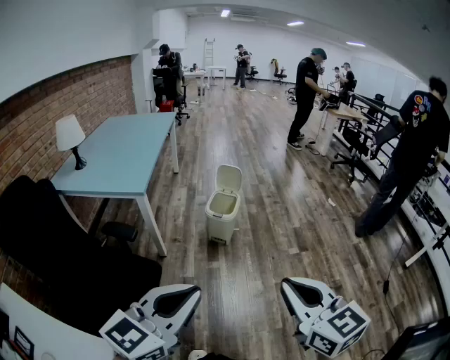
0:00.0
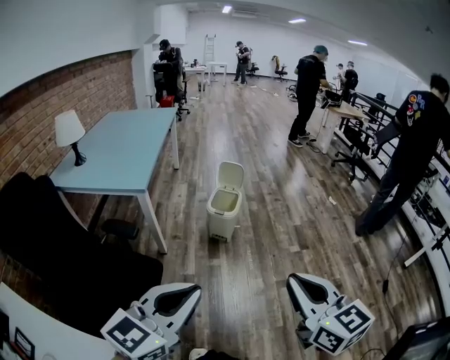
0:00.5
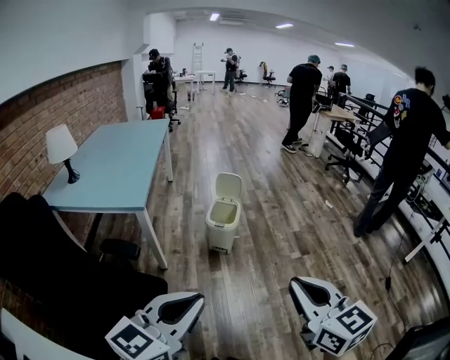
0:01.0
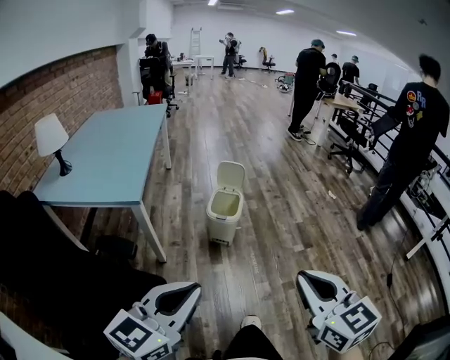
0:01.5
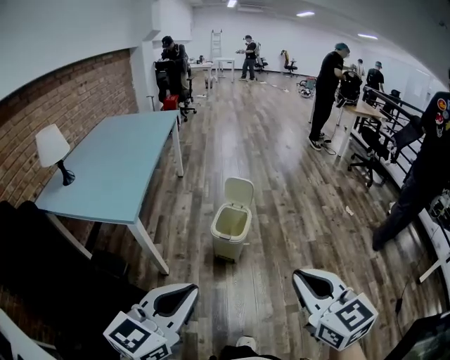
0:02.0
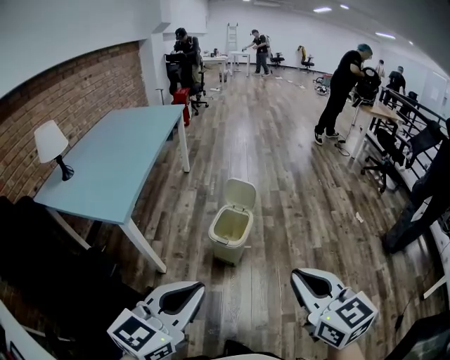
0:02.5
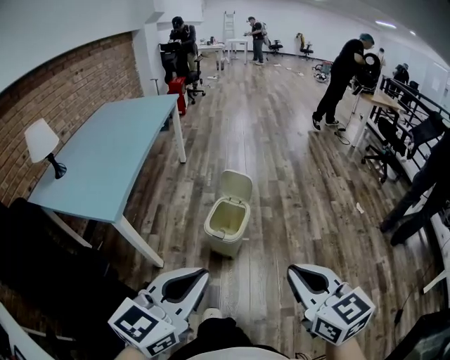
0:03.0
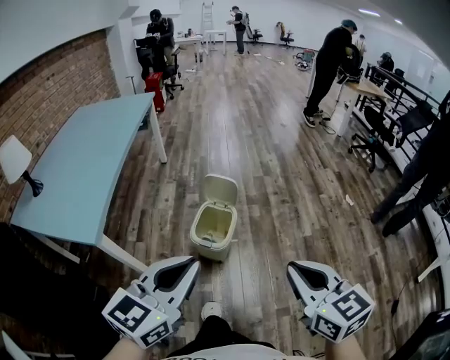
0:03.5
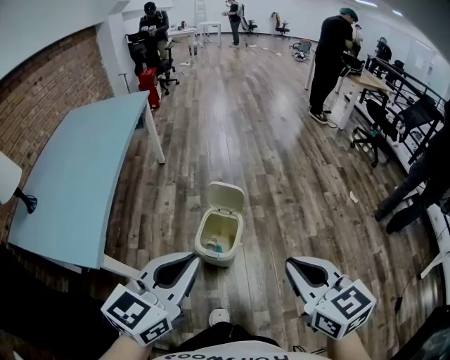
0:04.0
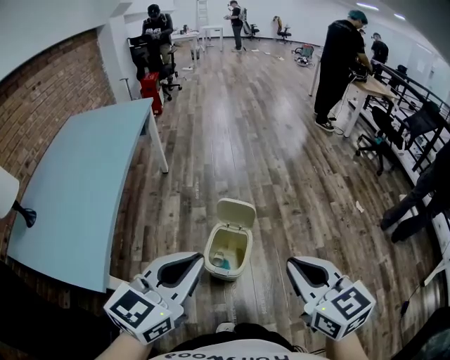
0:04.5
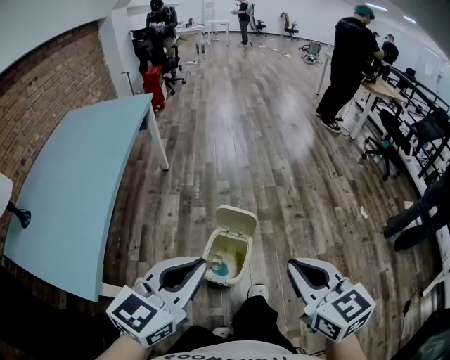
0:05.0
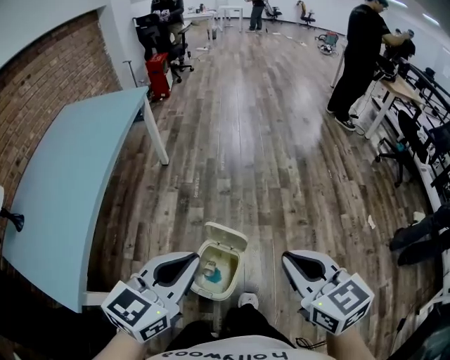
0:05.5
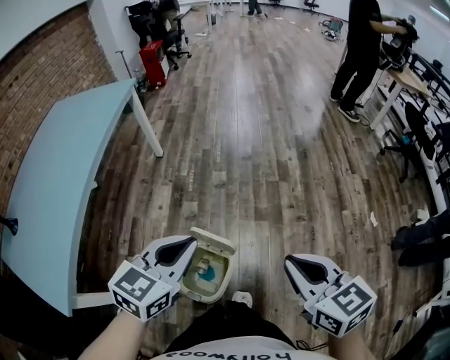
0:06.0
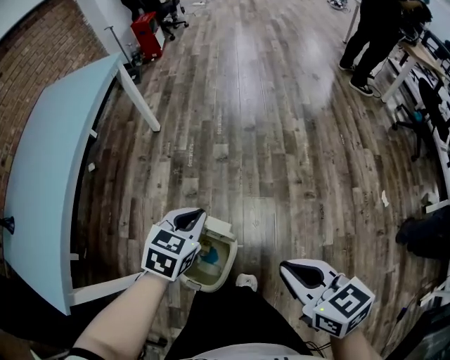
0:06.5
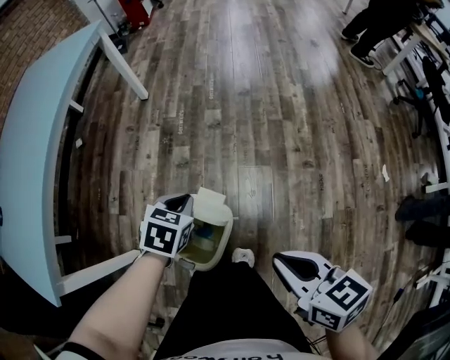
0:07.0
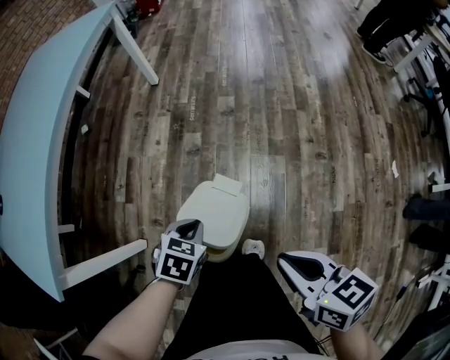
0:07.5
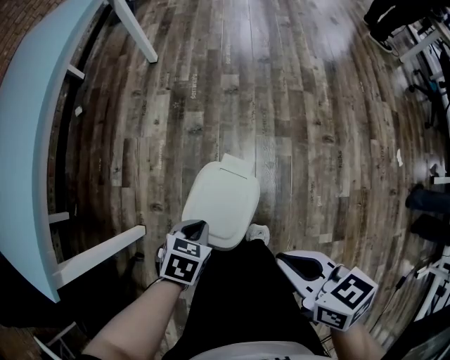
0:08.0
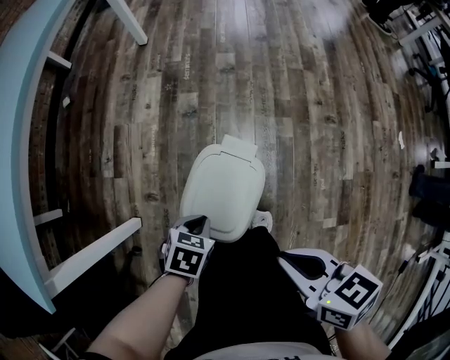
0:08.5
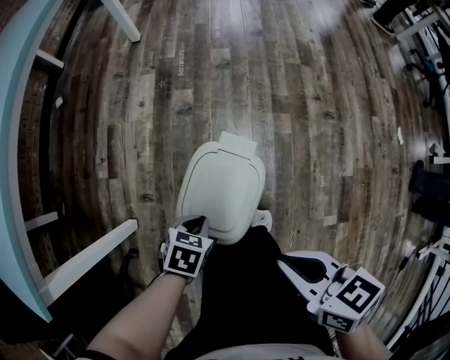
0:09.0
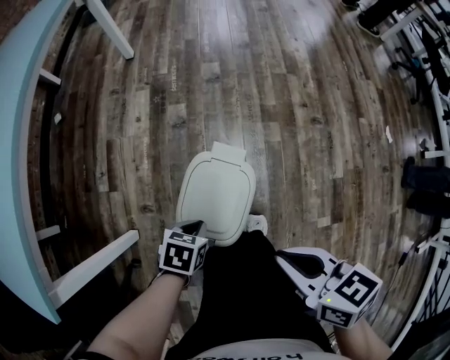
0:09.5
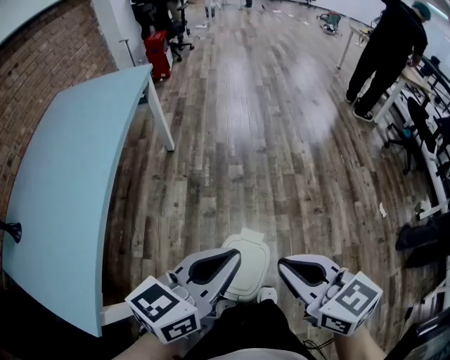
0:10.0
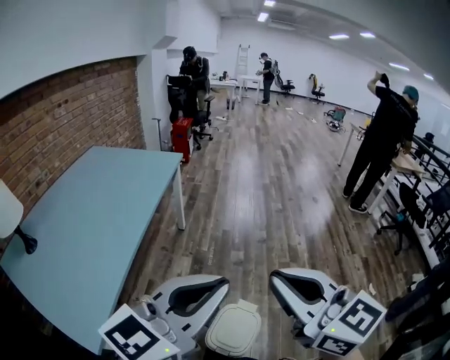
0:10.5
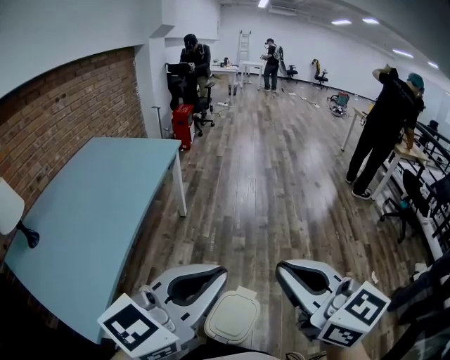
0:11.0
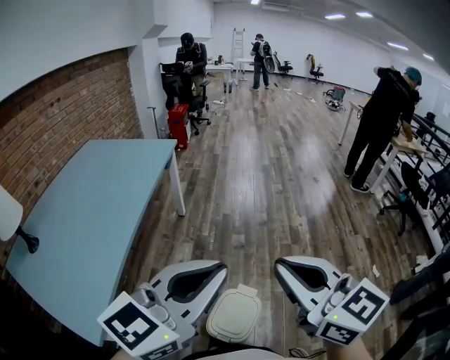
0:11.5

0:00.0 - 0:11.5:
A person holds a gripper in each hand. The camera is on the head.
0:00.0 - 0:02.0: Both grippers move forward, roughly 25 cm.
0:02.0 - 0:04.0: Both grippers move forward, approximately 30 cm.
0:04.0 - 0:06.0: The two grippers go roughly 35 cm forward.
0:06.0 - 0:07.5: The left gripper goes some 30 cm downward, and angles its fingers downward, by roughly 40 degrees, while the right gripper moves downward, some 15 cm, and swivels some 20 degrees.
0:07.5 - 0:09.5: The right gripper is displaced to the left and downward by approximately 10 cm. Meanwhile the left gripper moves downward and backward, roughly 15 cm.
0:09.5 - 0:11.5: The right gripper moves upward, approximately 40 cm, and tilts its fingers approximately 30 degrees upward. The left gripper shifts about 70 cm upward, and tips its fingers upward by approximately 70 degrees.

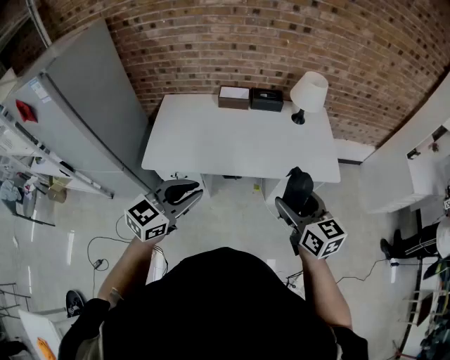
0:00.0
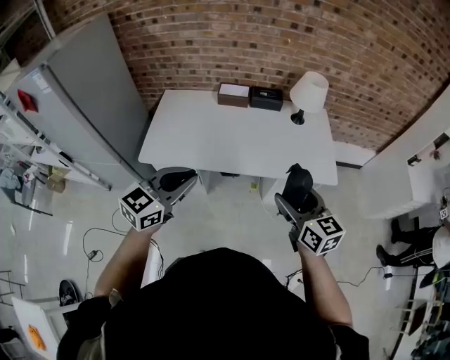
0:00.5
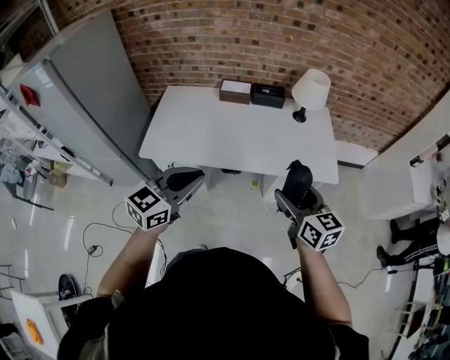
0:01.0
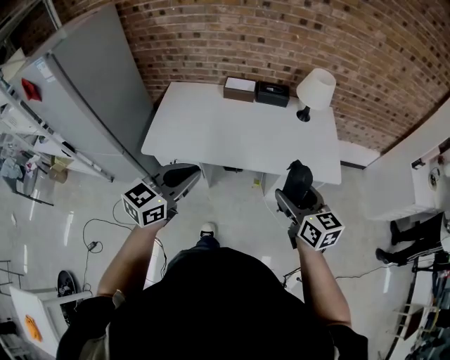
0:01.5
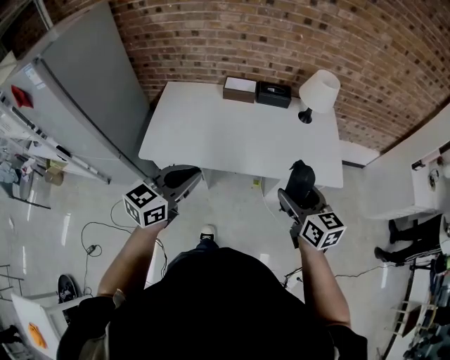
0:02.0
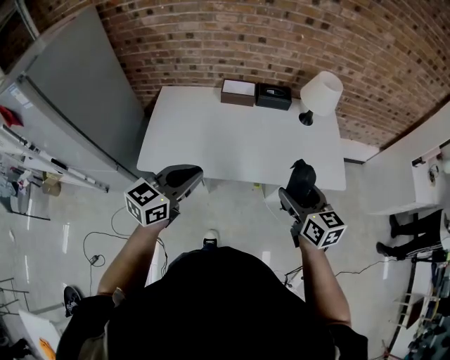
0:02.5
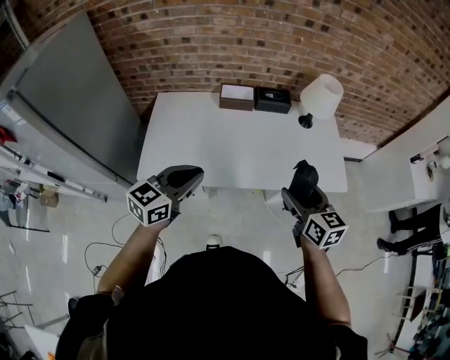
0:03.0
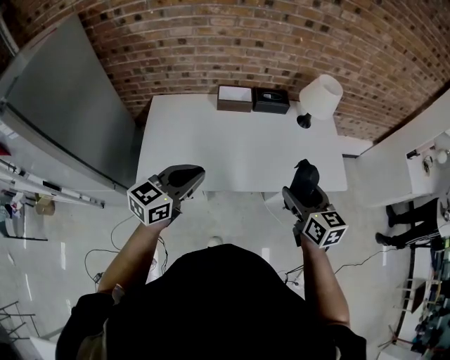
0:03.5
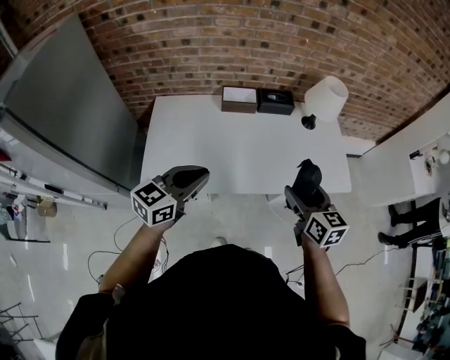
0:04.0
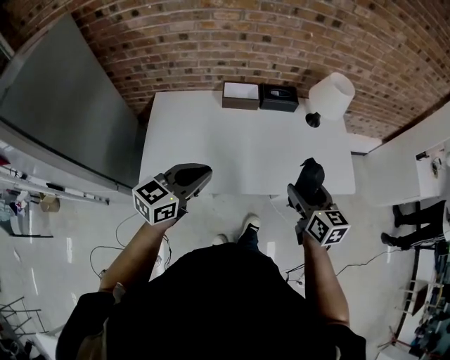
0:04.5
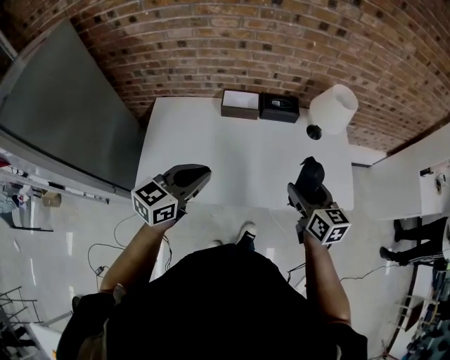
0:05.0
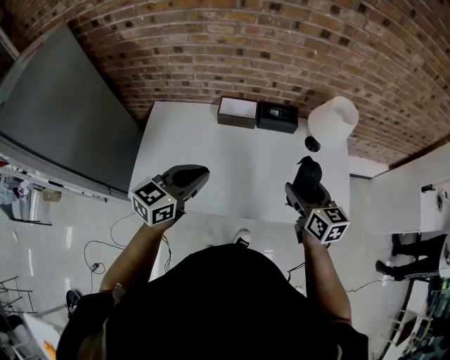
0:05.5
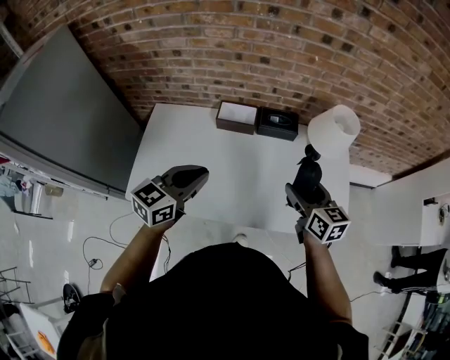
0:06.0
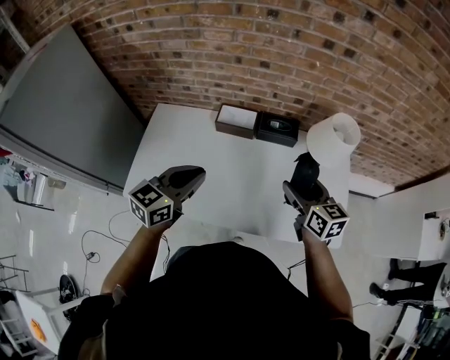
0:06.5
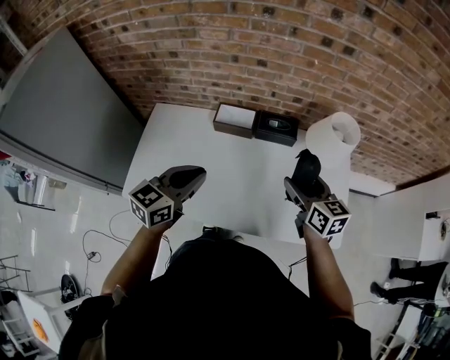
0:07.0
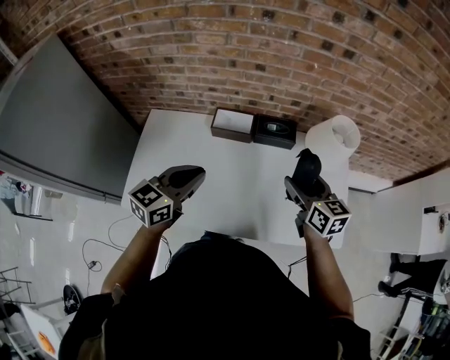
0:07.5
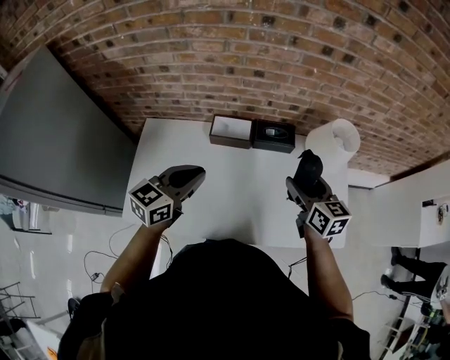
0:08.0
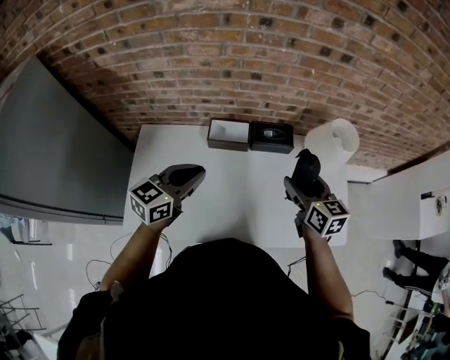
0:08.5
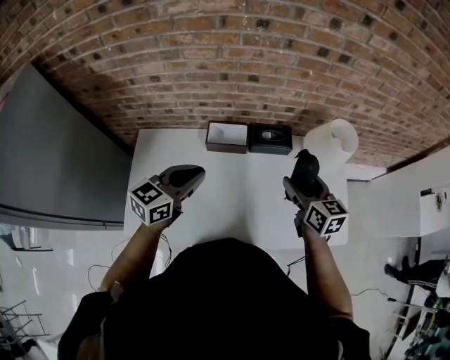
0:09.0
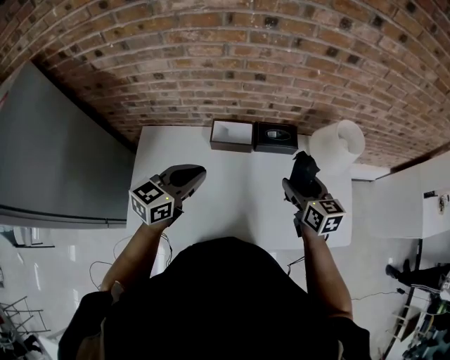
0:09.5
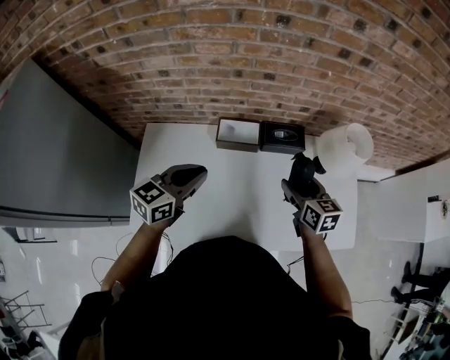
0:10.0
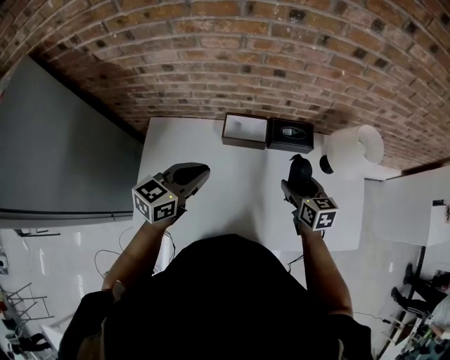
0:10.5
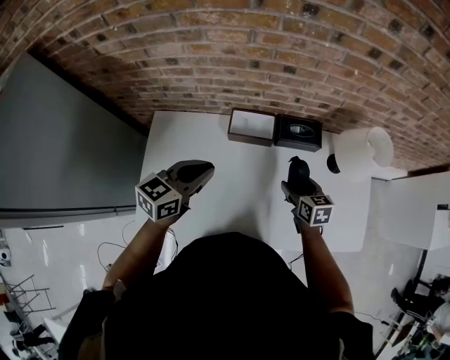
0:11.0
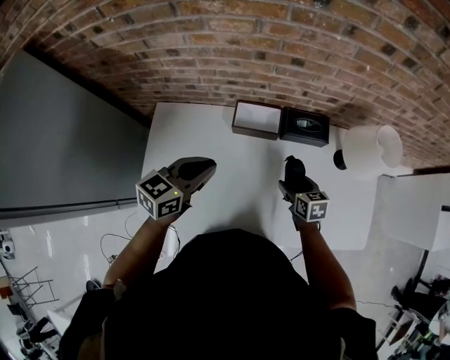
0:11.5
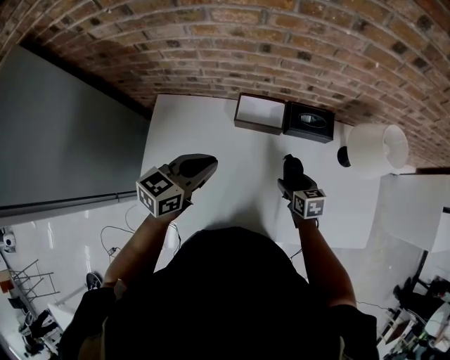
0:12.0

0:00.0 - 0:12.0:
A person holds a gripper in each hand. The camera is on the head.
0:00.0 - 0:02.0: The two grippers go approximately 5 cm forward.
0:02.0 - 0:04.0: The two grippers go about 15 cm forward and to the left.
0:04.0 - 0:06.0: The right gripper heads forward, covering roughly 25 cm. The left gripper shifts approximately 20 cm forward and to the right.
0:06.0 - 0:08.0: Both grippers travel together forward, roughly 10 cm.
0:08.0 - 0:10.0: The left gripper is displaced forward and to the left by roughly 5 cm. Meanwhile the right gripper travels downward and to the left by roughly 10 cm.
0:10.0 - 0:12.0: The left gripper moves downward, approximately 5 cm. The right gripper goes some 20 cm downward, and turns by approximately 20 degrees.

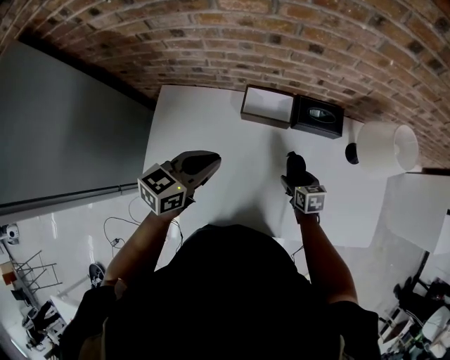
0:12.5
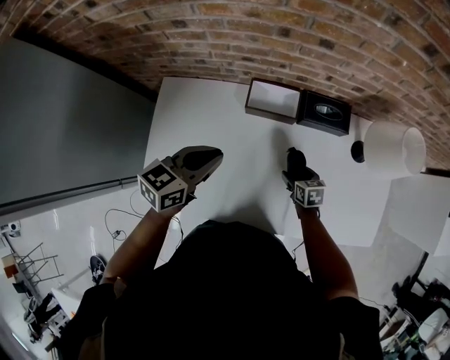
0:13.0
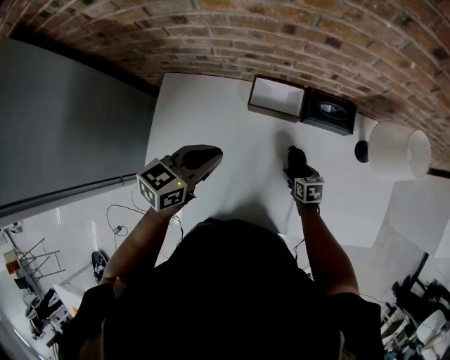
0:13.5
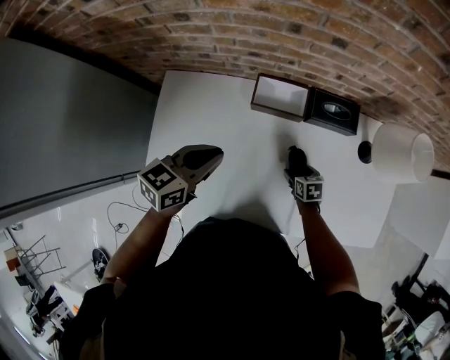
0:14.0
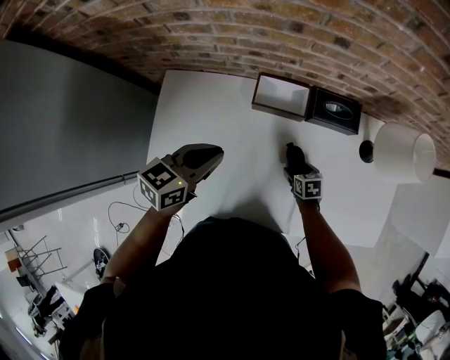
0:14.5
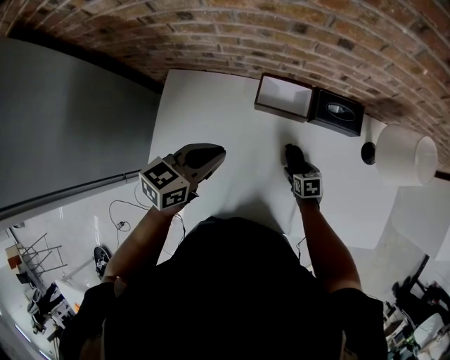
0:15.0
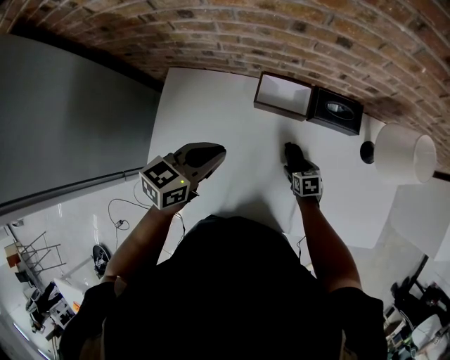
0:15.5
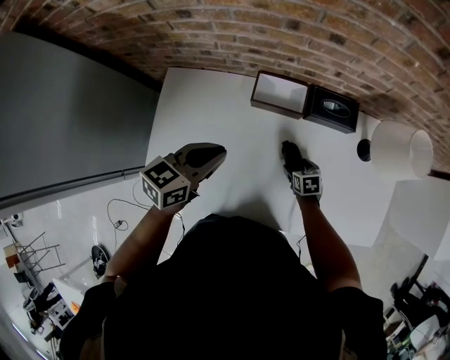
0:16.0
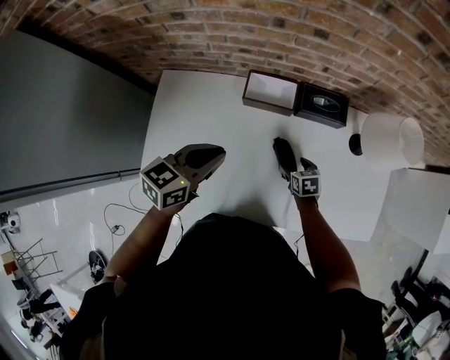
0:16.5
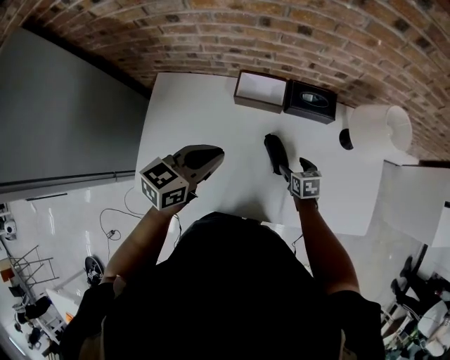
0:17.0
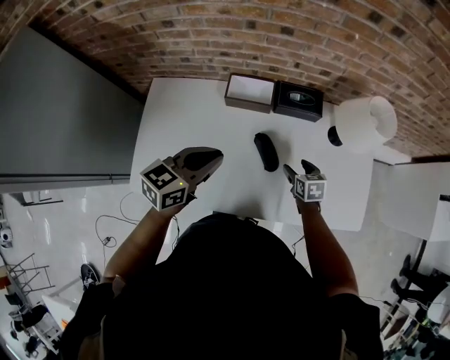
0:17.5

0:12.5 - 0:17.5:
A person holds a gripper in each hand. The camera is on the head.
0:12.5 - 0:15.0: The right gripper is displaced downward by about 10 cm.
0:15.0 - 0:17.5: The right gripper heads upward and to the right, covering some 15 cm. The left gripper is displaced to the right, backward and upward by roughly 15 cm.
